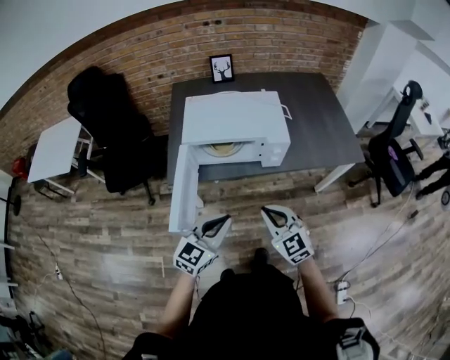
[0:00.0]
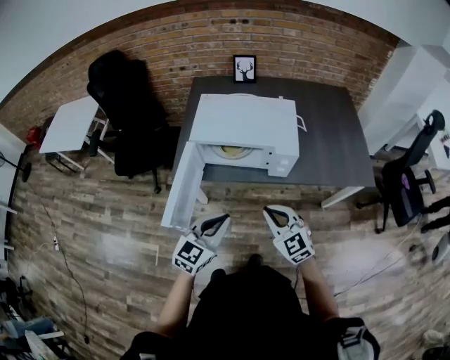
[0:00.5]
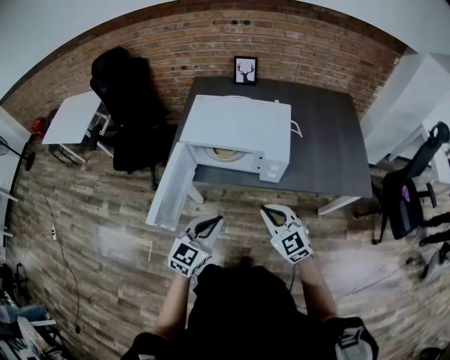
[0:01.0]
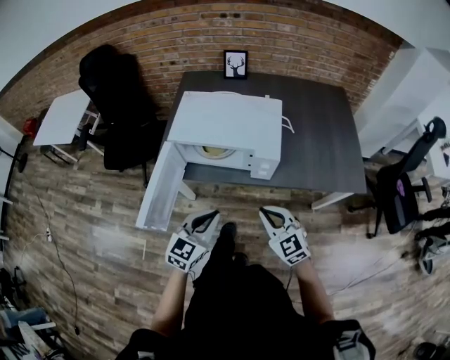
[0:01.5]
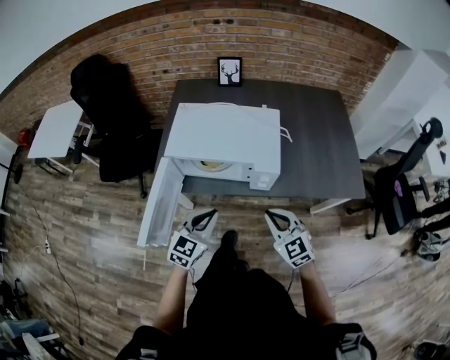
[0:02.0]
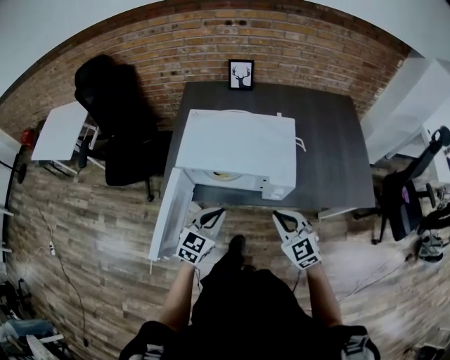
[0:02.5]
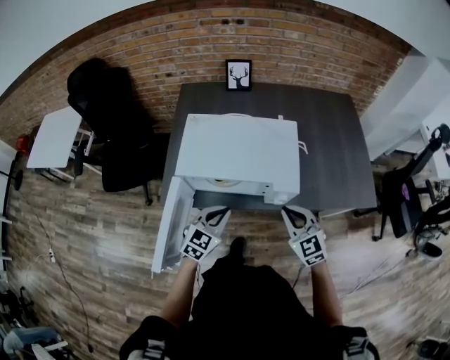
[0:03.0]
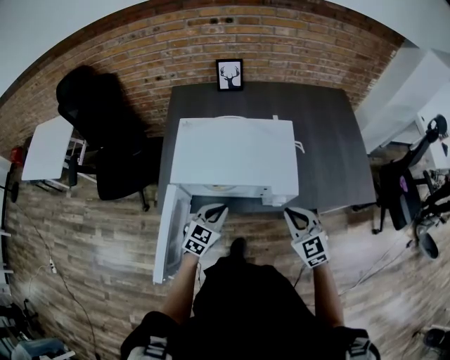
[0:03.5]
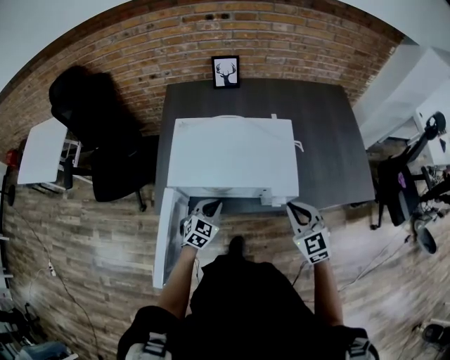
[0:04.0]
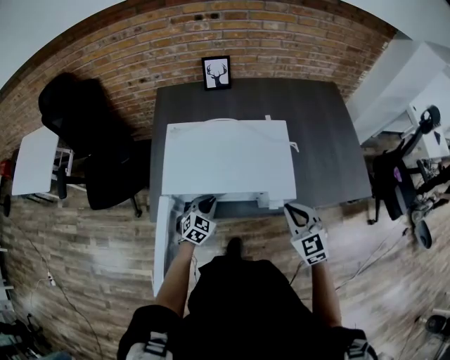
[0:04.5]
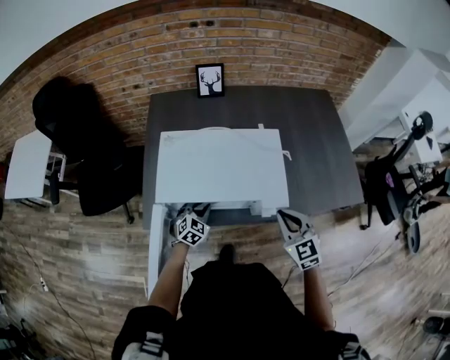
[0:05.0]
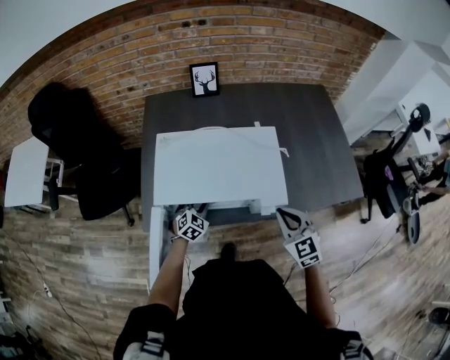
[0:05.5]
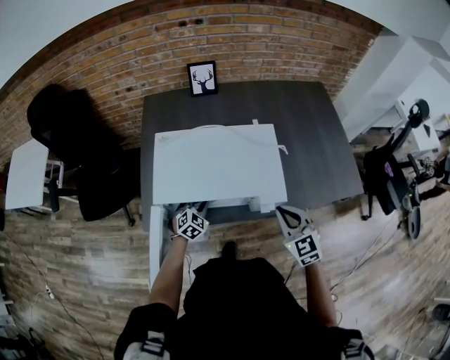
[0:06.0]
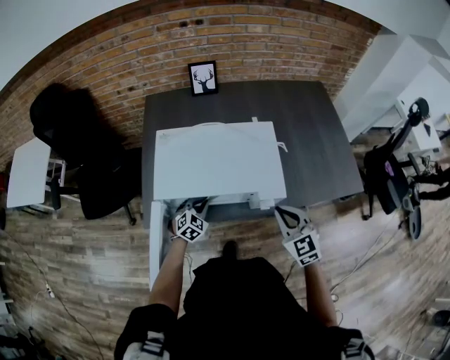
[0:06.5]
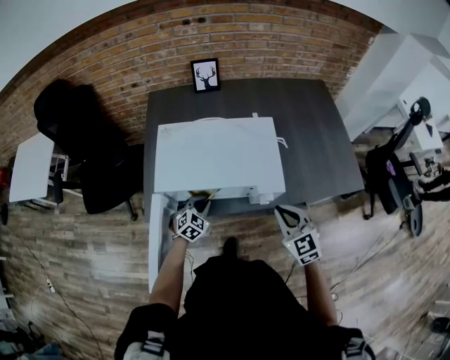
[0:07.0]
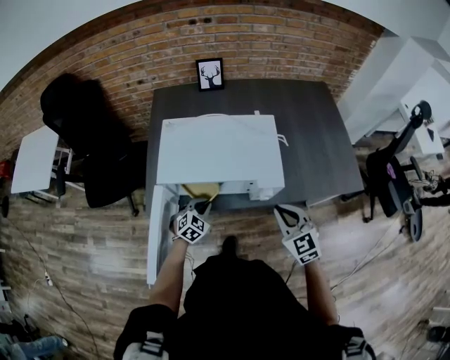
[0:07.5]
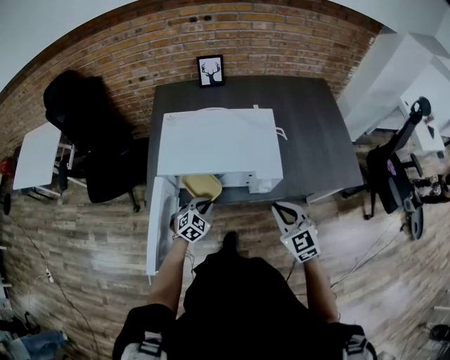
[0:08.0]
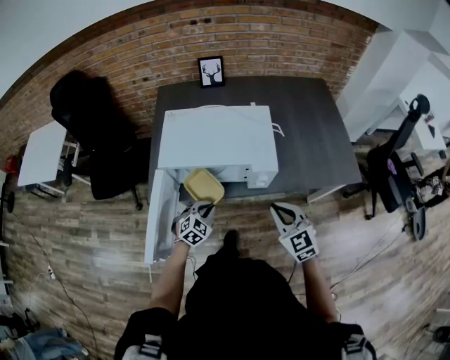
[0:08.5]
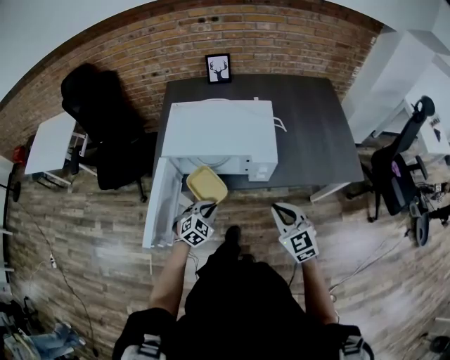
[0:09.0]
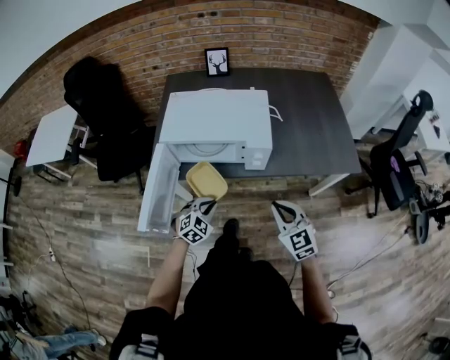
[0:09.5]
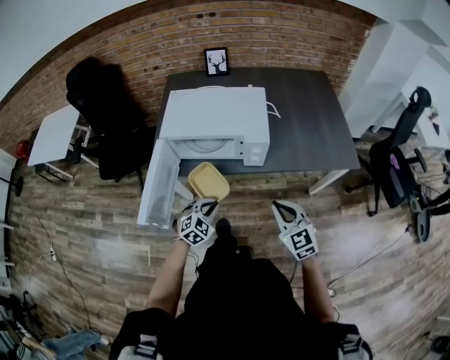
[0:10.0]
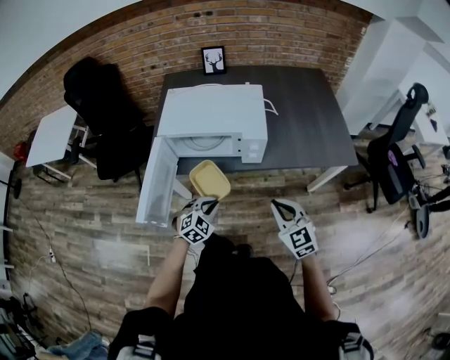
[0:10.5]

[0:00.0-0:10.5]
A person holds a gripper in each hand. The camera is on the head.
0:00.0 to 0:02.0: The left gripper goes roughly 15 cm forward and to the right, while the right gripper moves to the right and forward, roughly 15 cm.
0:02.0 to 0:04.0: The right gripper goes about 10 cm forward; the left gripper shifts some 20 cm forward and downward.
0:04.0 to 0:06.5: The left gripper is displaced downward by roughly 5 cm.
0:06.5 to 0:08.5: The two grippers go some 10 cm backward.
0:08.5 to 0:10.5: The right gripper is displaced backward by about 10 cm. Meanwhile the left gripper travels backward and to the right by about 15 cm.

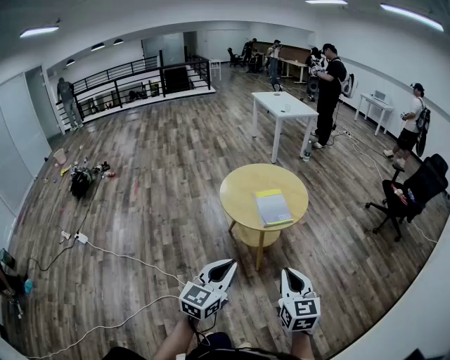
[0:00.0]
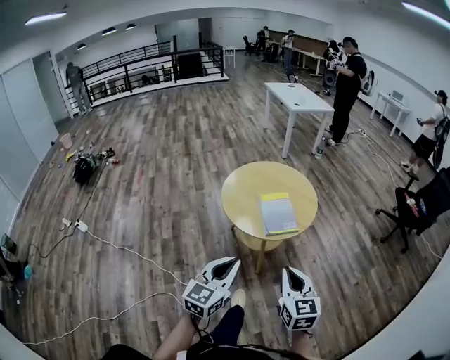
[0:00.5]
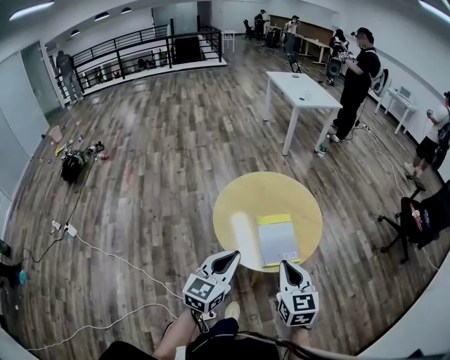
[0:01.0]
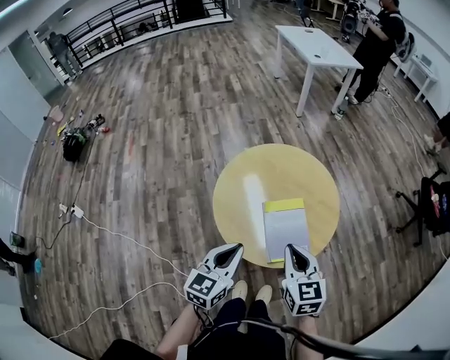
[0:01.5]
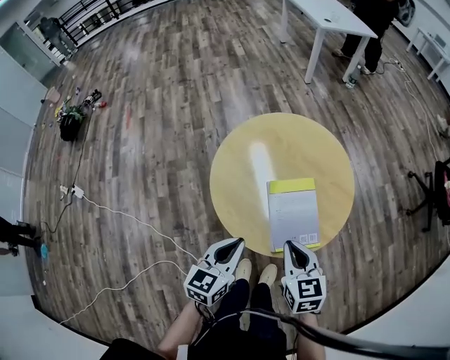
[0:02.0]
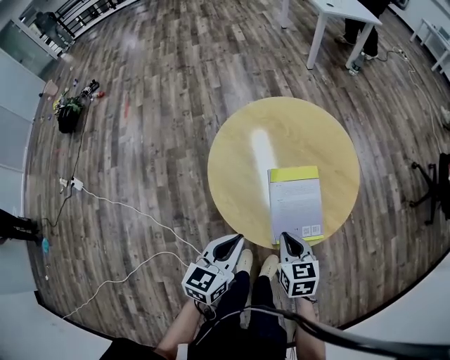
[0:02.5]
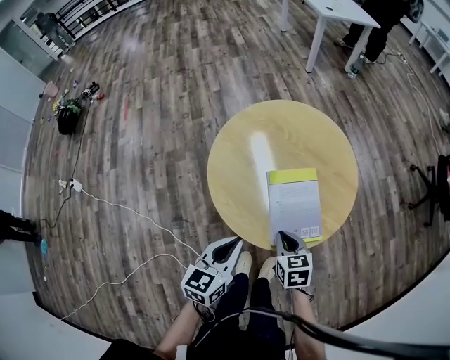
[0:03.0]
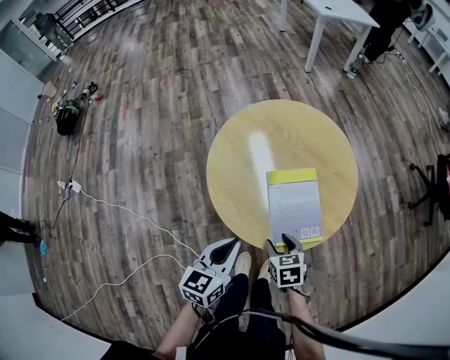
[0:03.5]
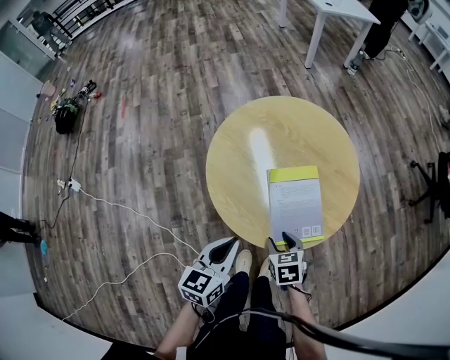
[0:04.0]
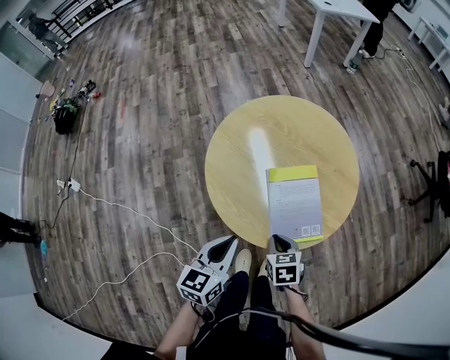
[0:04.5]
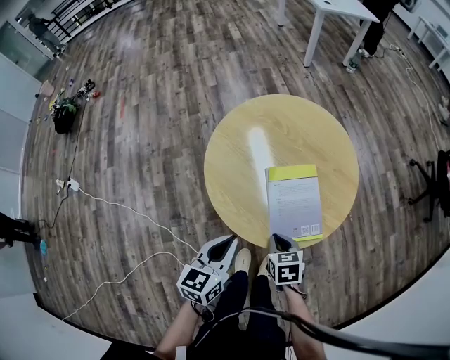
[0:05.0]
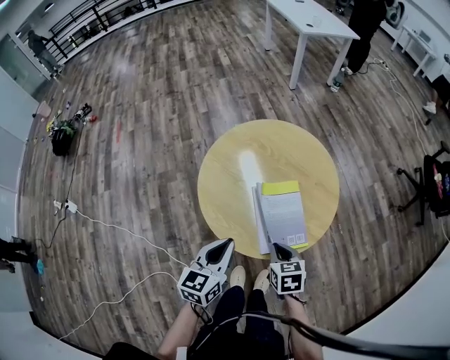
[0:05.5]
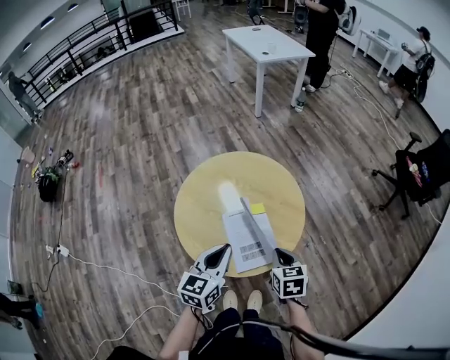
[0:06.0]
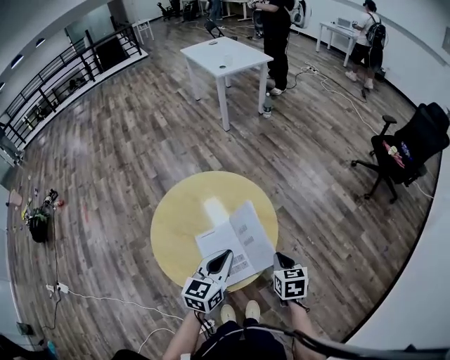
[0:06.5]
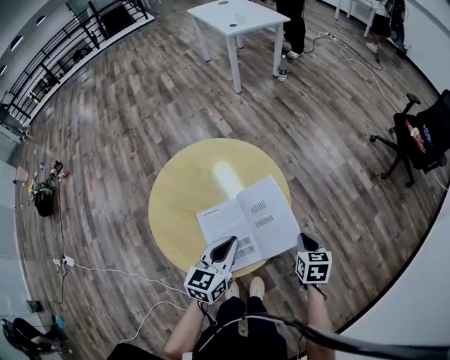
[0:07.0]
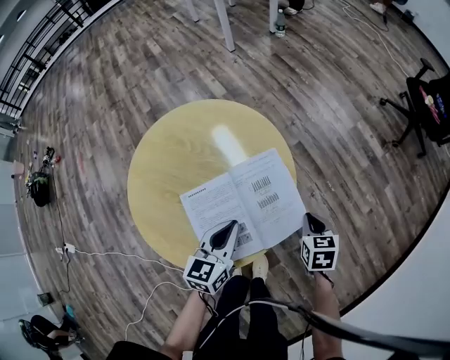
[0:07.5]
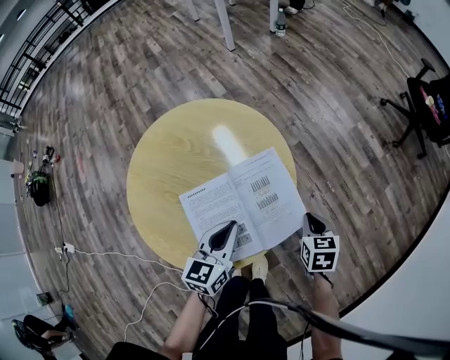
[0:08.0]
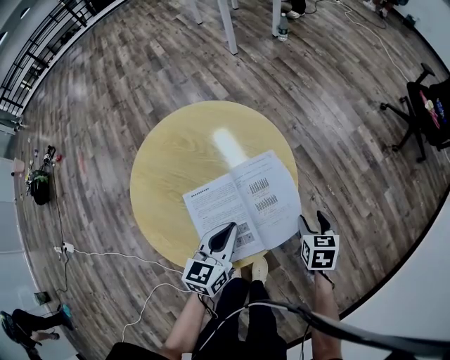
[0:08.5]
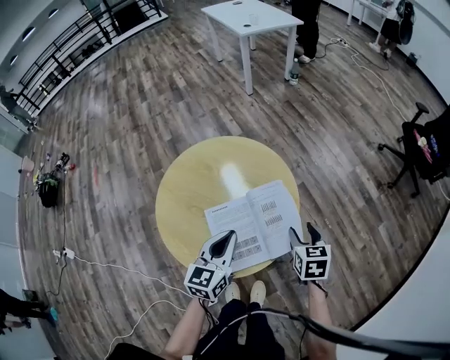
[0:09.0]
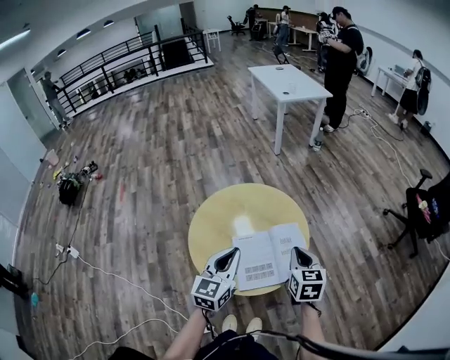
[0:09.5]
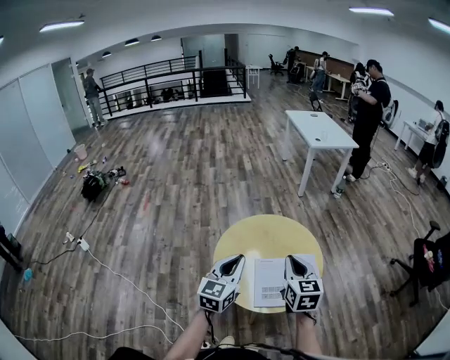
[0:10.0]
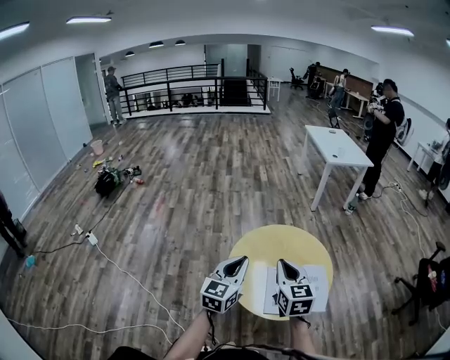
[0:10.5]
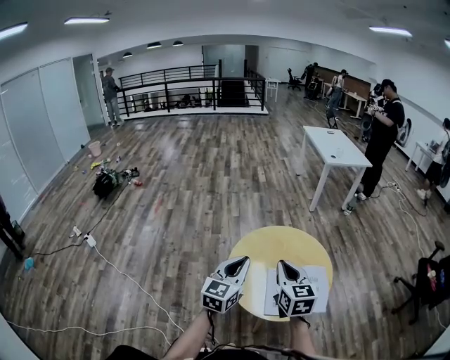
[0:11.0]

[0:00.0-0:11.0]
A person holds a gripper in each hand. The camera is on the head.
0:00.0 to 0:02.0: Both grippers travel together forward and downward, about 40 cm. The left gripper turns by approximately 20 degrees; the right gripper changes its angle by about 20 degrees.
0:02.0 to 0:03.5: The right gripper travels downward by roughly 15 cm, rotates some 20 degrees, and opens.
0:03.5 to 0:05.5: The right gripper travels upward by roughly 5 cm, and closes up.
0:05.5 to 0:07.5: The left gripper heads to the right, forward and downward, covering approximately 25 cm; the right gripper shifts some 30 cm to the right and forward, and changes its angle by roughly 20 degrees.
0:07.5 to 0:09.0: The right gripper moves upward and to the left, roughly 10 cm, and opens. Meanwhile the left gripper is displaced upward by some 10 cm.
0:09.0 to 0:11.0: Both grippers move to the left and upward, roughly 35 cm. The right gripper angles its fingers upward, by some 30 degrees, and closes up; the left gripper rotates approximately 30 degrees.

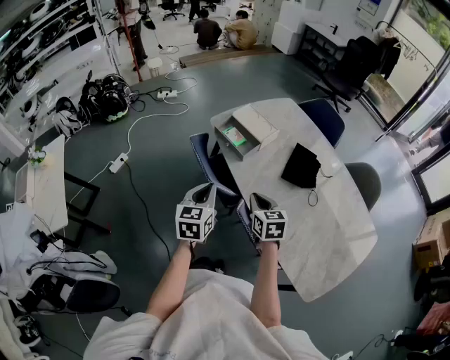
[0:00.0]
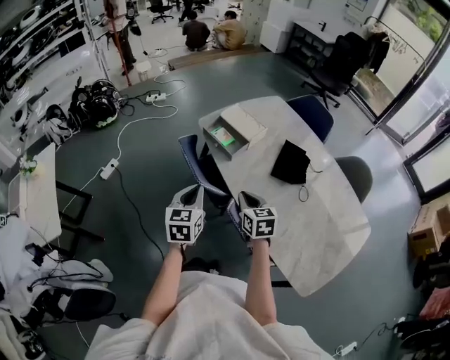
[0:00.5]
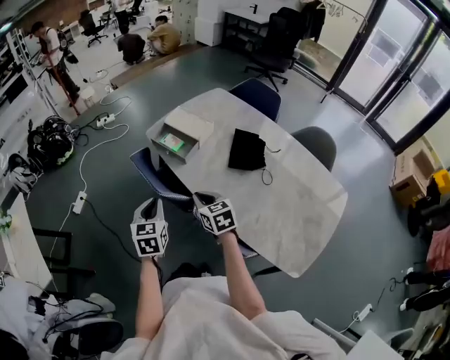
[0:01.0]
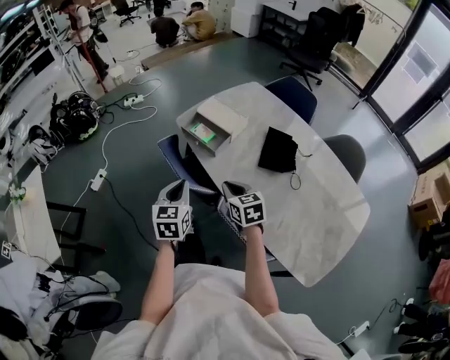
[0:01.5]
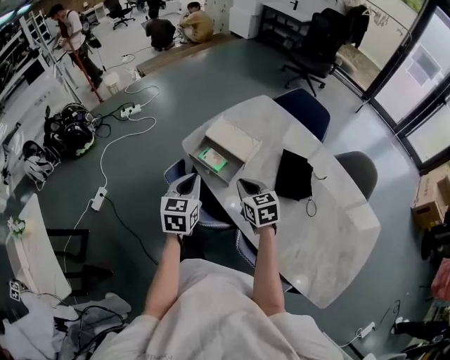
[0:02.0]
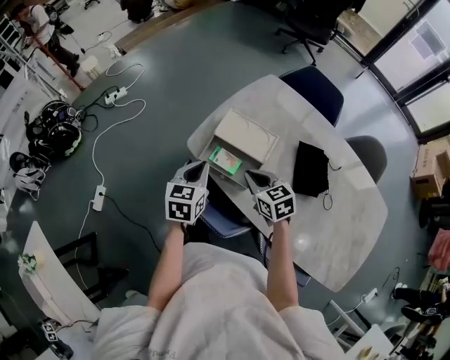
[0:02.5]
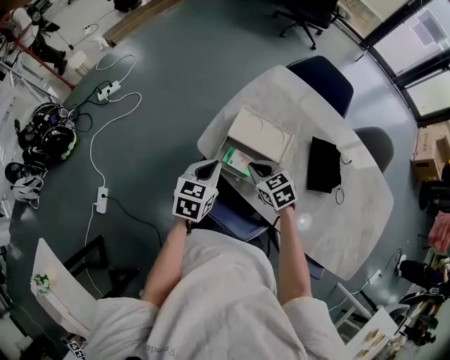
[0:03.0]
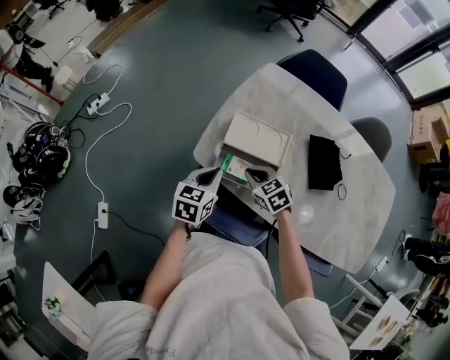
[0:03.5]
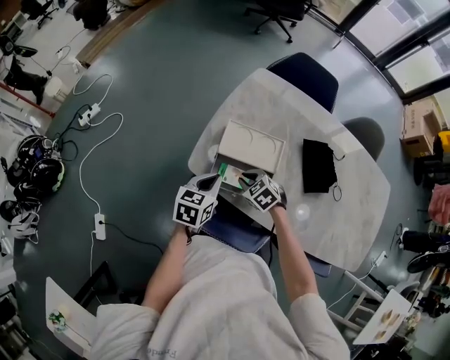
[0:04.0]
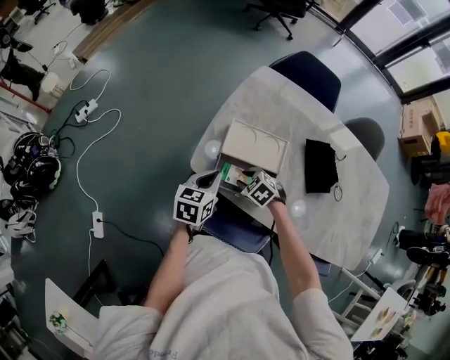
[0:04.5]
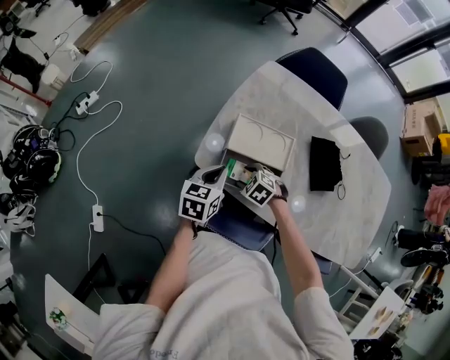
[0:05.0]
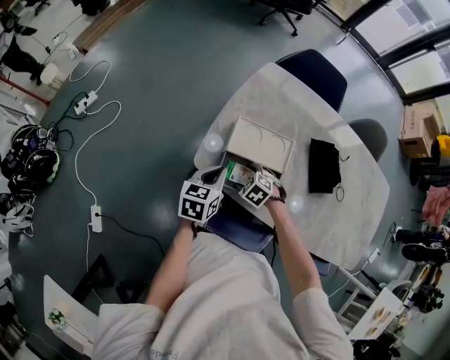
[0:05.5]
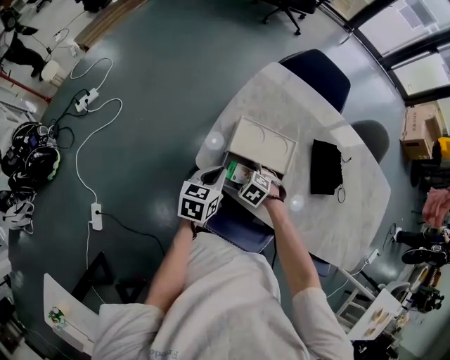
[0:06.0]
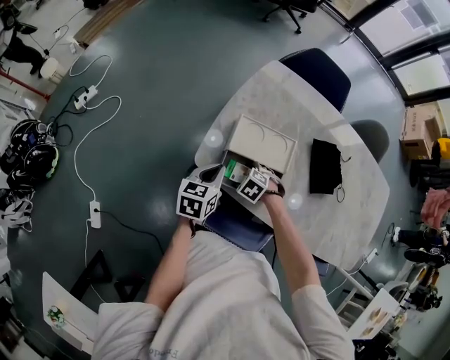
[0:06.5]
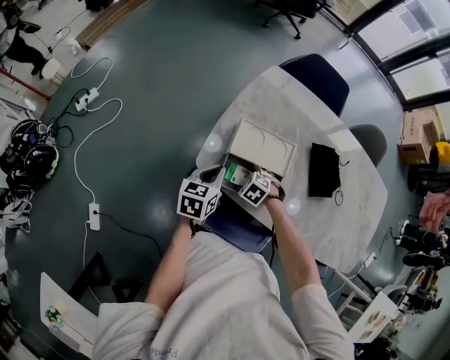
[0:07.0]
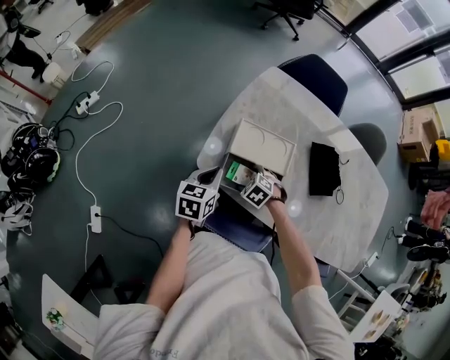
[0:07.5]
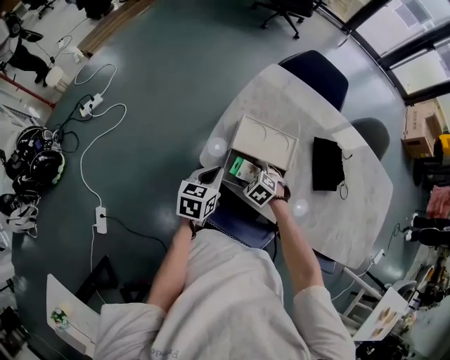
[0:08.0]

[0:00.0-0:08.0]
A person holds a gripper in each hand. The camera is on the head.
0:00.0 to 0:02.0: The two grippers go some 20 cm forward.
0:02.0 to 0:04.0: The left gripper goes some 20 cm forward and downward, and swivels approximately 40 degrees, while the right gripper is displaced downward, forward and to the left by about 25 cm, and changes its angle by approximately 30 degrees.
0:04.0 to 0:06.0: The right gripper travels downward by some 5 cm, rotates about 20 degrees, and opens its fingers.
0:06.0 to 0:08.0: The grippers make only small movements.
